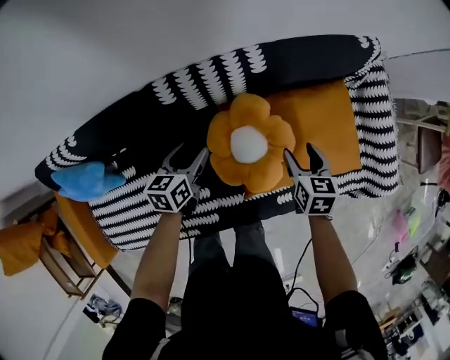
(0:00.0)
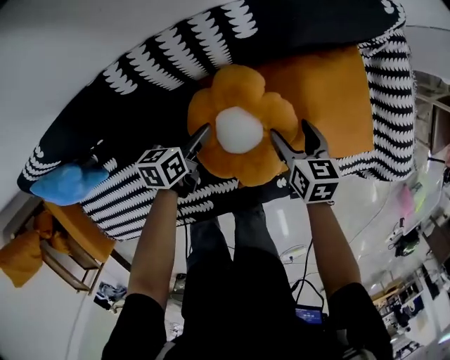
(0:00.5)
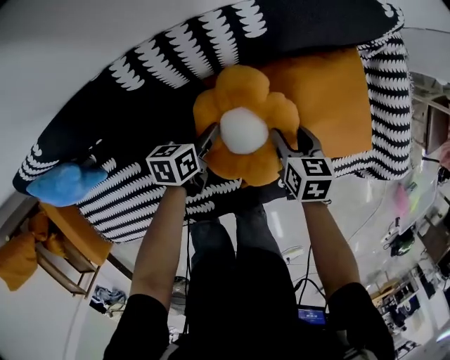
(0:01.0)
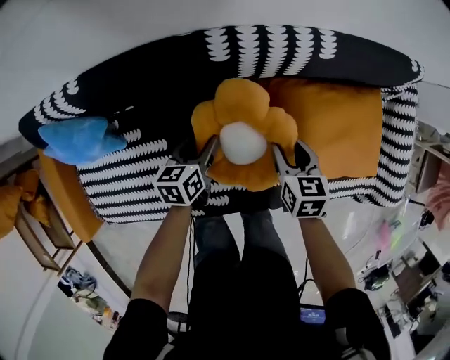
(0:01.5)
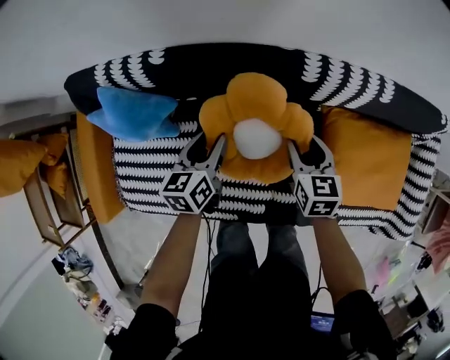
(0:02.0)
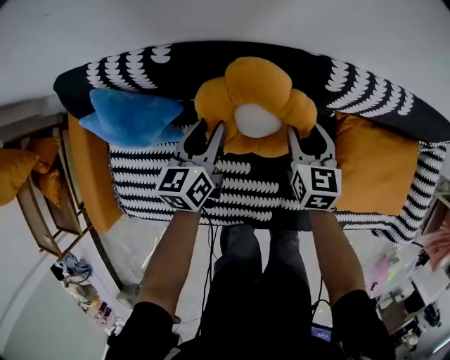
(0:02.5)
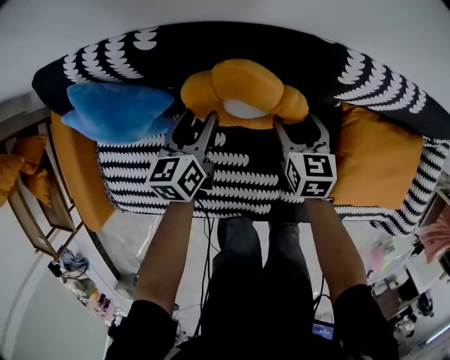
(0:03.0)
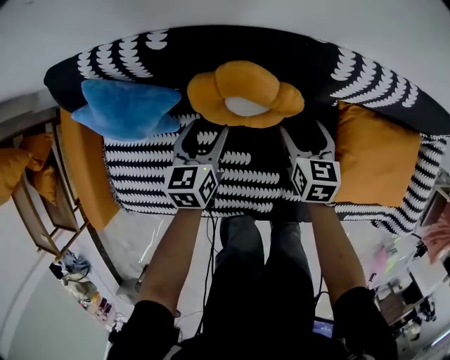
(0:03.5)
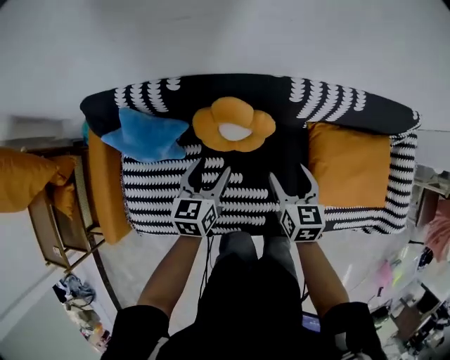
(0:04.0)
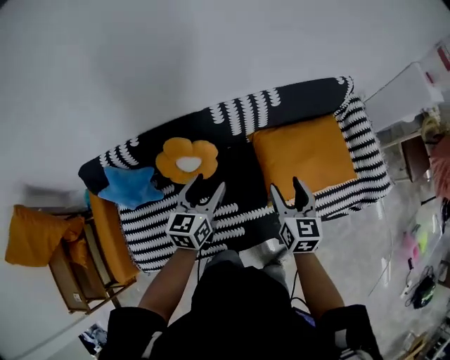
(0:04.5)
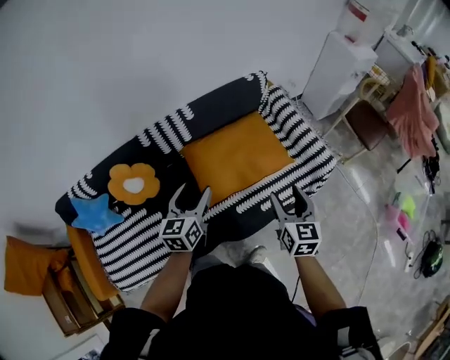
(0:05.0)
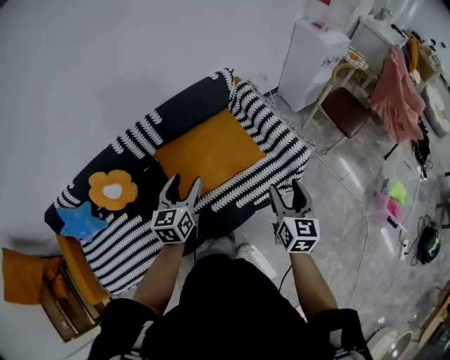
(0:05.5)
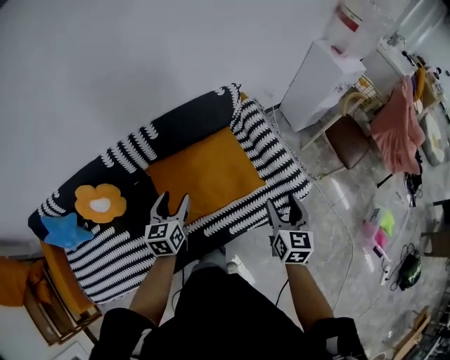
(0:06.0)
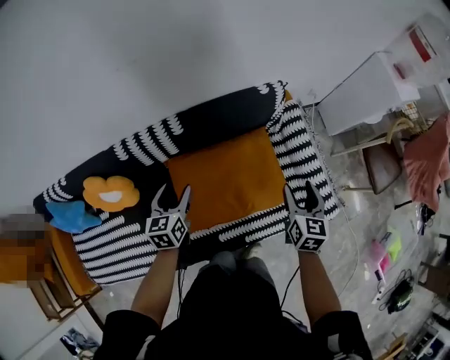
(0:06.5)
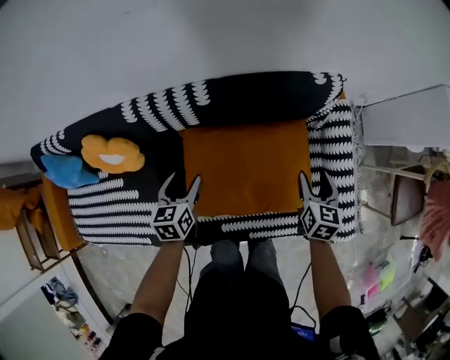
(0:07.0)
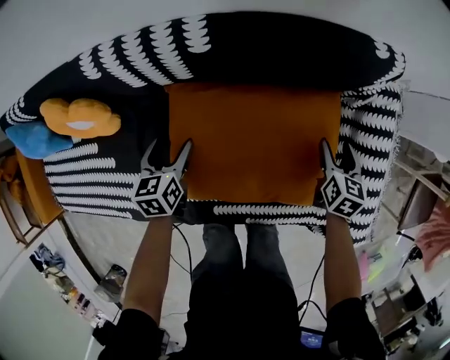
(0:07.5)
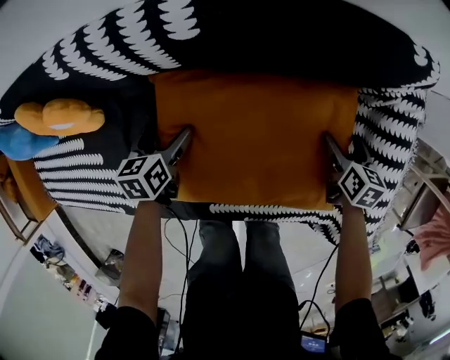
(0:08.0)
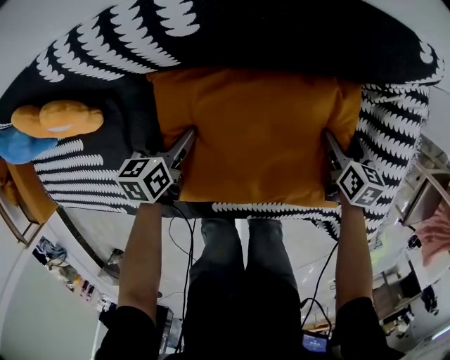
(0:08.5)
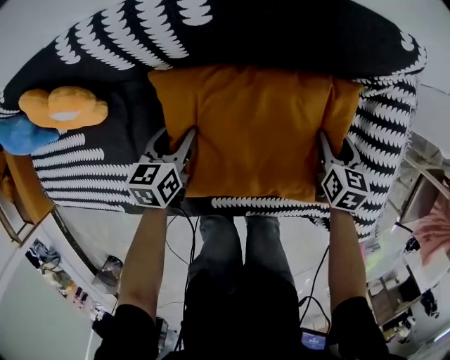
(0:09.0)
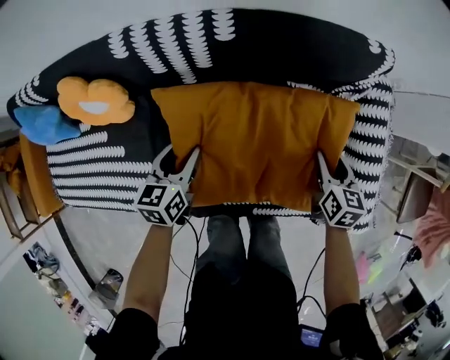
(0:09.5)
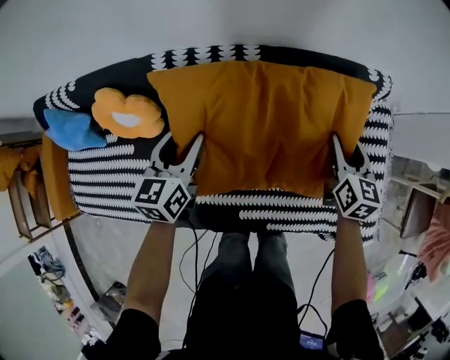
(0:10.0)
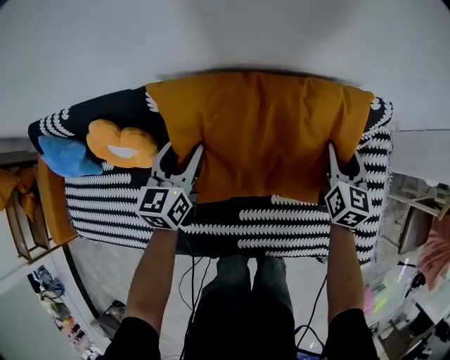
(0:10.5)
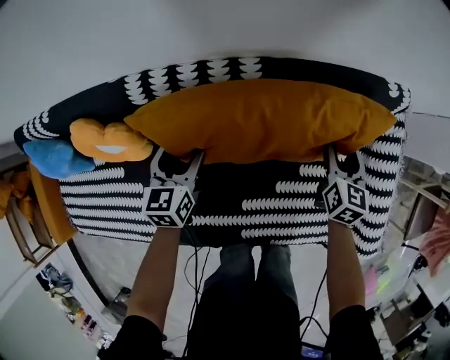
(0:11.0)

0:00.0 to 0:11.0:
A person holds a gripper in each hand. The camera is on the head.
0:00.0 to 0:02.0: The left gripper goes downward and returns, some 10 cm each way, and swivels roughly 30 degrees, while the right gripper travels downward and back again, approximately 10 cm each way, and swivels roughly 20 degrees.
0:02.0 to 0:03.5: Both grippers move downward, roughly 5 cm. The right gripper opens up.
0:03.5 to 0:05.5: The two grippers travel together, about 60 cm. The right gripper turns by approximately 50 degrees, while the left gripper turns by about 40 degrees.
0:05.5 to 0:07.5: The right gripper shifts by roughly 60 cm, and turns by some 40 degrees. Meanwhile the left gripper travels downward by about 35 cm, and swivels approximately 40 degrees.
0:07.5 to 0:09.0: The left gripper moves roughly 5 cm, and closes up.
0:09.0 to 0:11.0: The right gripper goes about 15 cm upward, to the left and forward, while the left gripper travels to the left, upward and forward by about 15 cm.

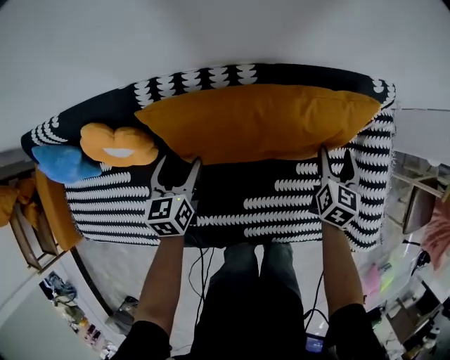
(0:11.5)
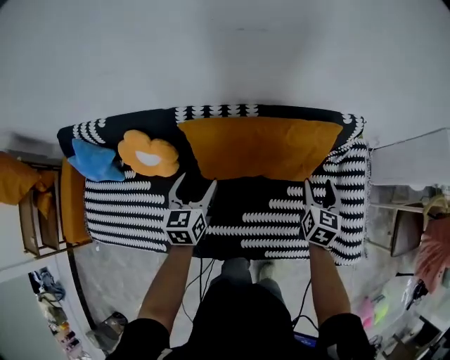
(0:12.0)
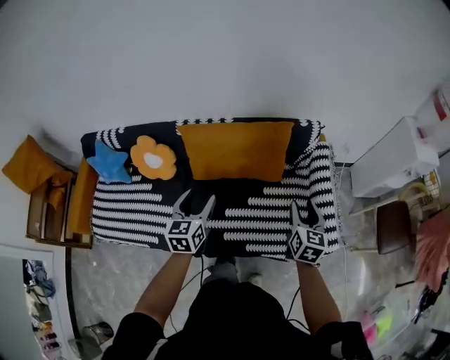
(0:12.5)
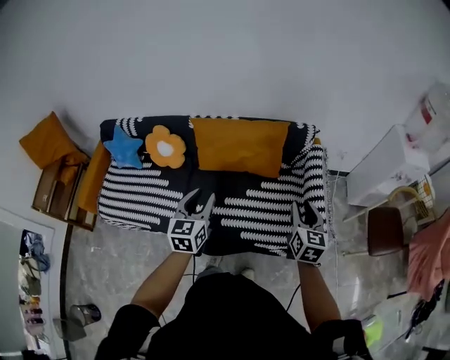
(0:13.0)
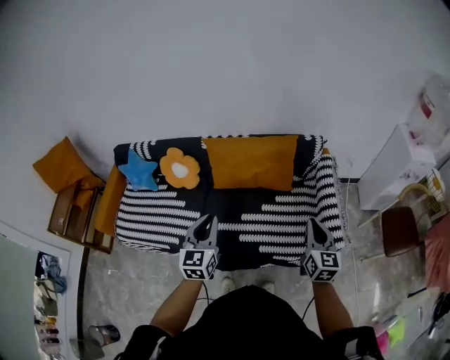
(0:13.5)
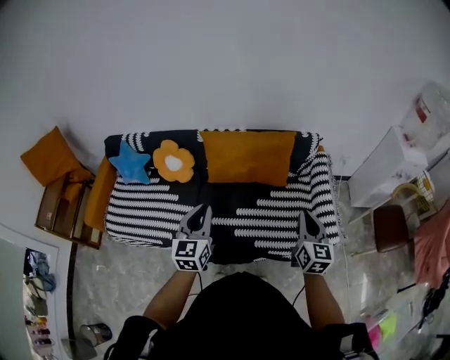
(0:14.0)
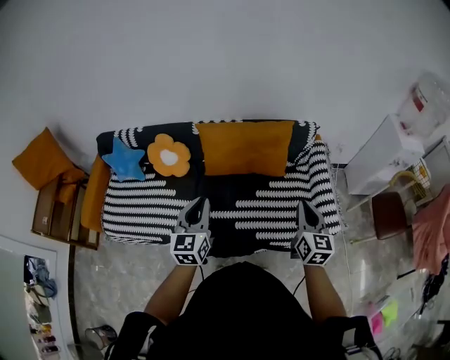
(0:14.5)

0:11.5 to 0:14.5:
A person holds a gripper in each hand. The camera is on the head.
0:11.5 to 0:13.0: The left gripper heads upward, backward and to the right, covering some 50 cm, rotates roughly 20 degrees, and closes its fingers, while the right gripper is displaced backward and upward by roughly 40 cm, rotates roughly 30 degrees, and closes.
0:13.0 to 0:14.5: Both grippers travel together to the left, approximately 10 cm.

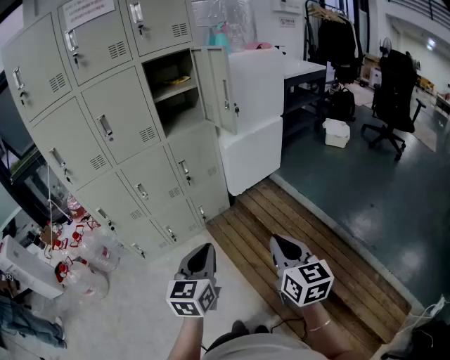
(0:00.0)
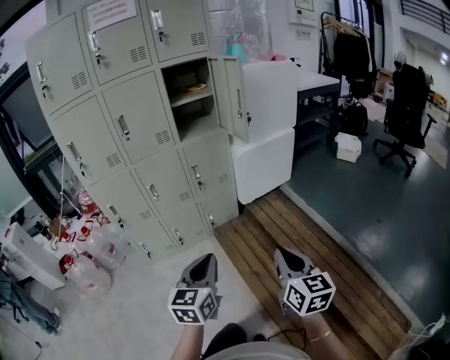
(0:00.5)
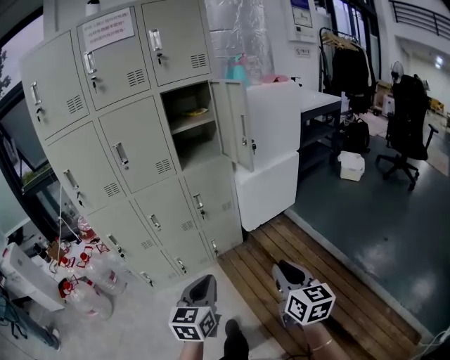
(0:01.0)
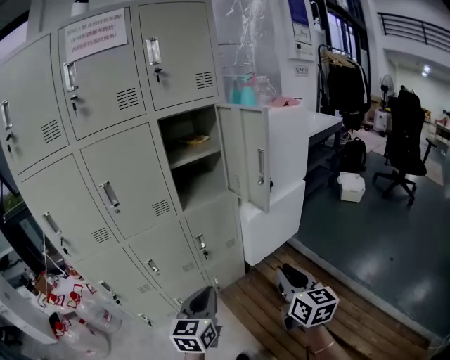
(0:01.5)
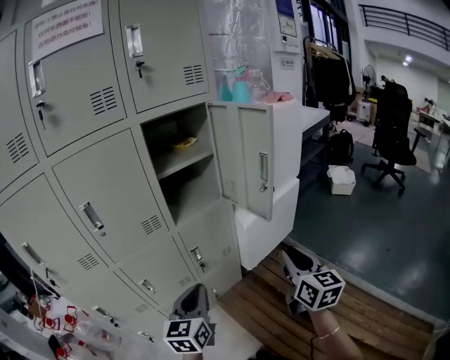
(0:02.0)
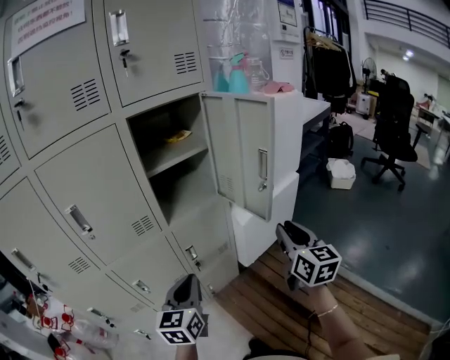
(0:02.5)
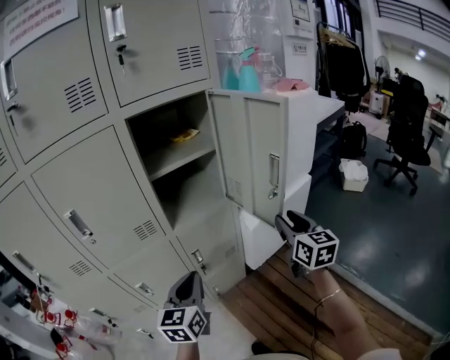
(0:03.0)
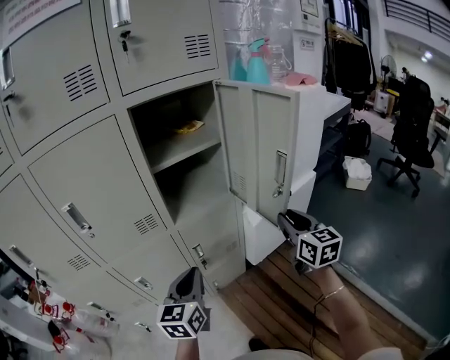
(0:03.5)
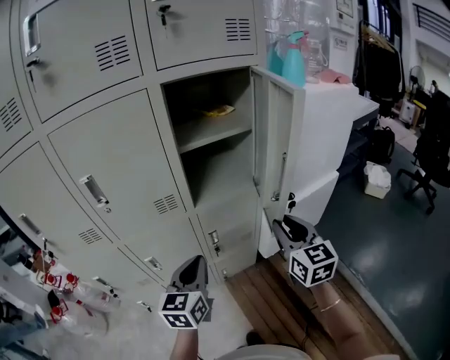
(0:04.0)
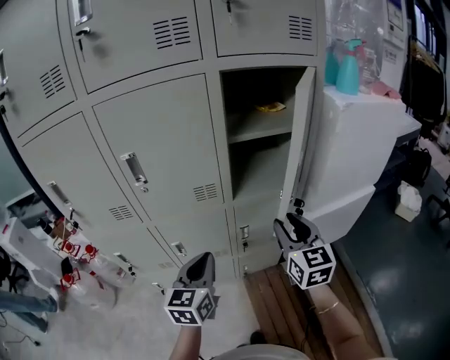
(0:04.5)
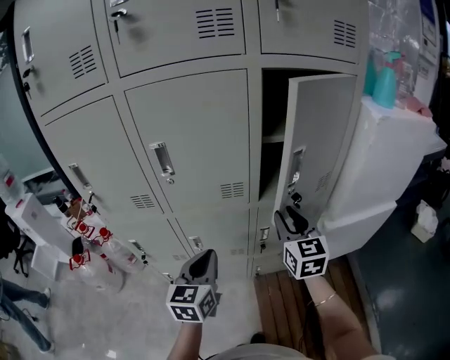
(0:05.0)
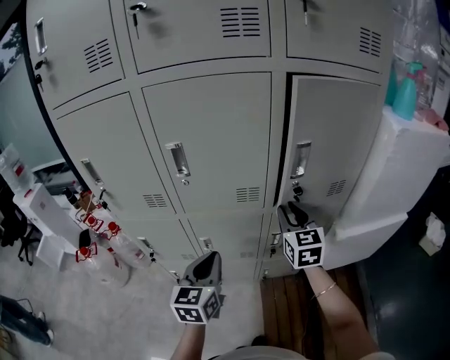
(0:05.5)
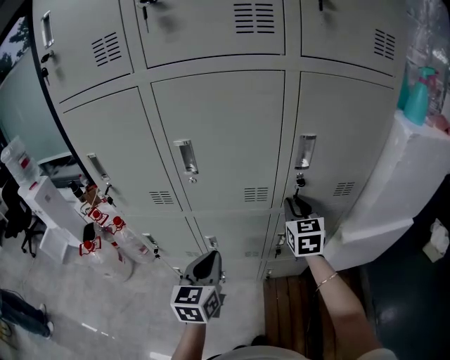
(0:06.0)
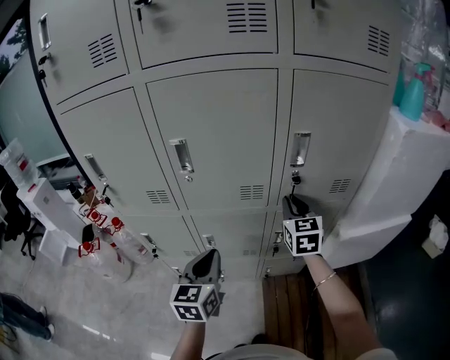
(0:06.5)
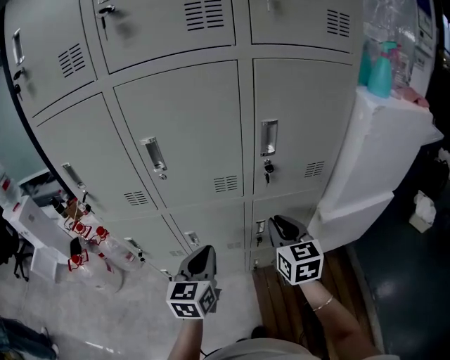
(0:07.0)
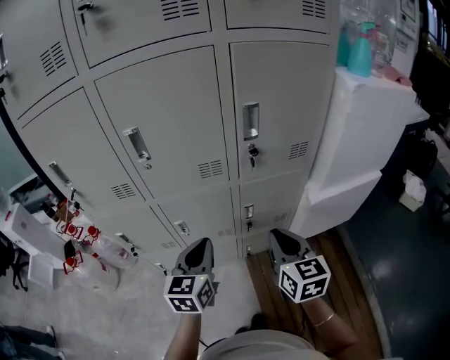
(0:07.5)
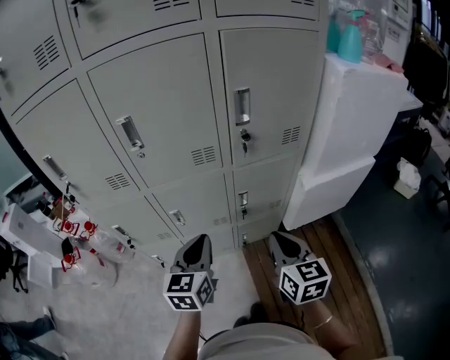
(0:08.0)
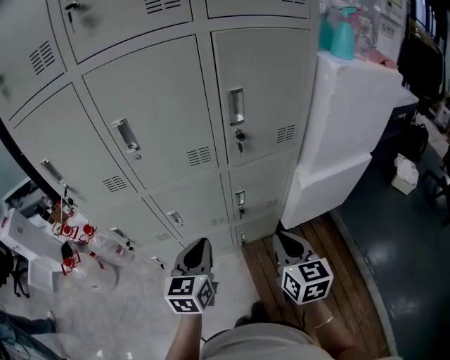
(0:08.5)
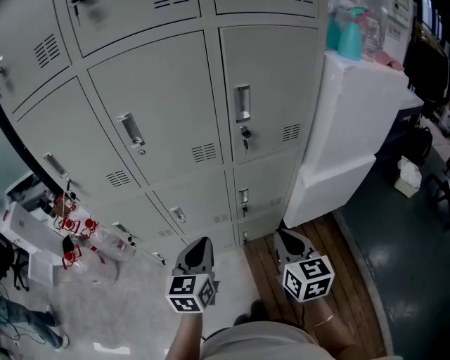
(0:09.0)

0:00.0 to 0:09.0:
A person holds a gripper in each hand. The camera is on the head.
0:00.0 to 0:02.0: The pair of grippers is taken forward, some 40 cm.
0:02.0 to 0:04.5: The right gripper moves forward and to the left, some 25 cm, and changes its angle by some 30 degrees. The left gripper goes some 15 cm forward and to the left.
0:04.5 to 0:07.0: The right gripper moves to the left, roughly 10 cm, reaches roughly 15 cm forward, then returns, and closes up.
0:07.0 to 0:09.0: The right gripper is displaced backward by some 15 cm; the left gripper goes roughly 5 cm backward.

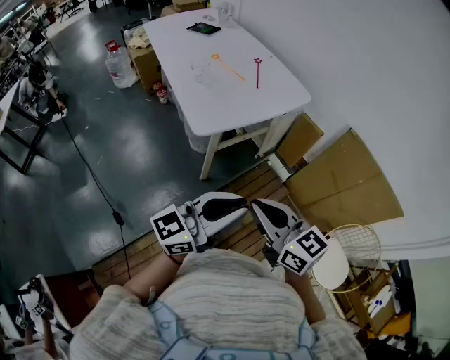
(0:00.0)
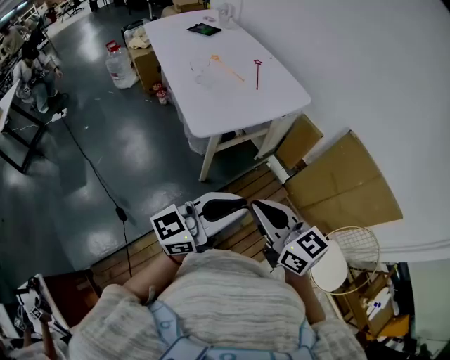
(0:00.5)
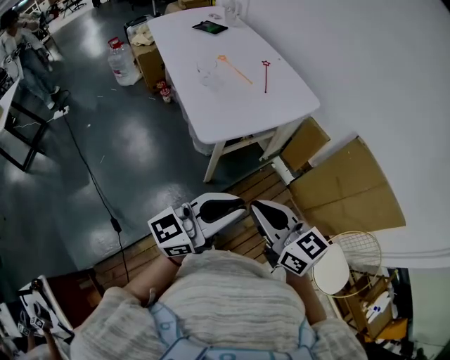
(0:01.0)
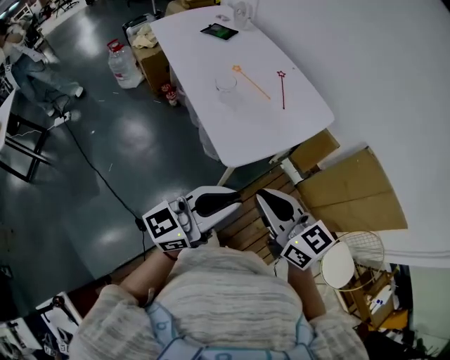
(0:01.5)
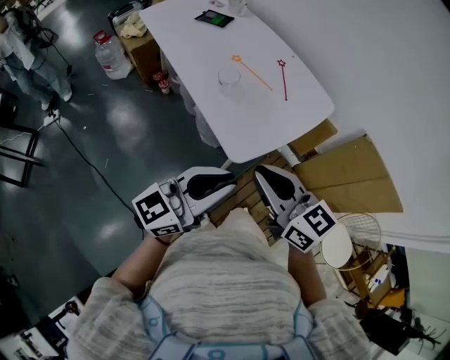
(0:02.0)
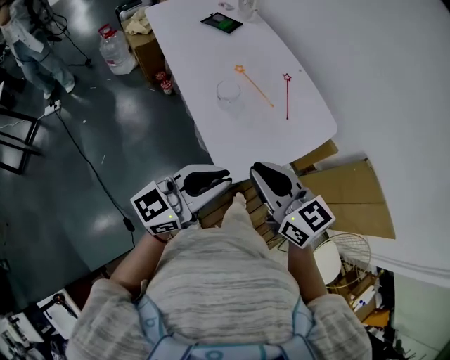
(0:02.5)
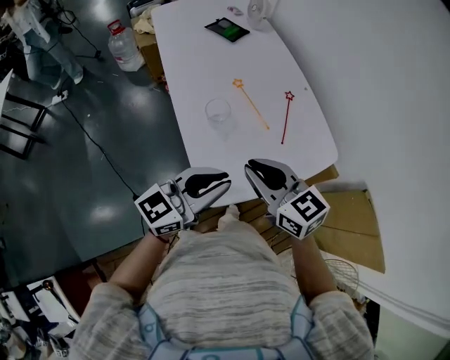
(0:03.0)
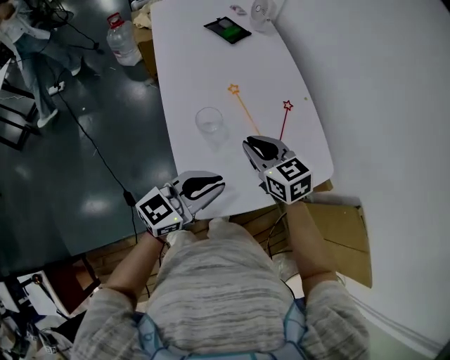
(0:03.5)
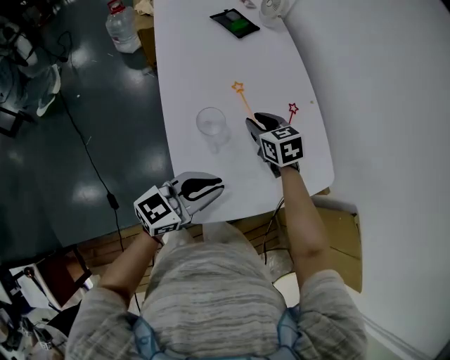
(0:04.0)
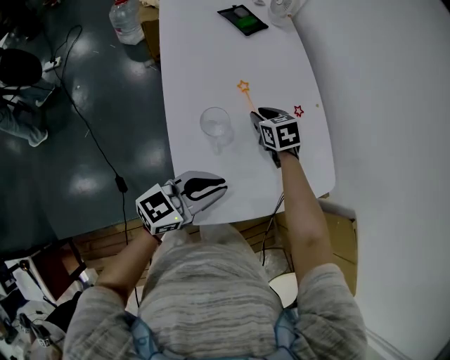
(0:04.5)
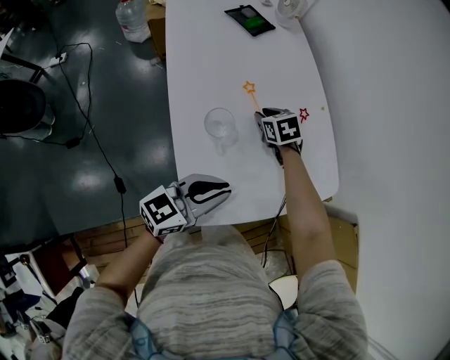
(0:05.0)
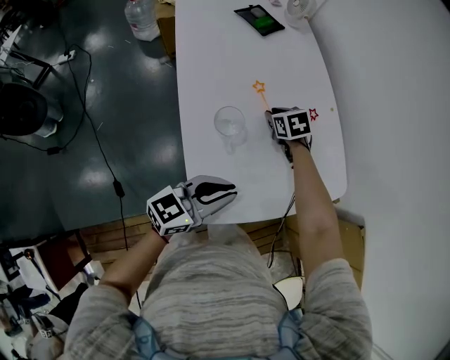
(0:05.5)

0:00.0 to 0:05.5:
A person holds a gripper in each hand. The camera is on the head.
0:00.0 to 0:02.0: The left gripper heads to the left and forward, covering some 25 cm; the right gripper is displaced to the left, forward and upward by roughly 30 cm.
0:02.0 to 0:03.5: The right gripper goes some 35 cm forward, and changes its angle by about 30 degrees. Meanwhile the left gripper shifts about 25 cm forward and downward, and swivels some 20 degrees.
0:03.5 to 0:05.5: The right gripper is displaced forward and downward by about 25 cm, and changes its angle by about 30 degrees.
